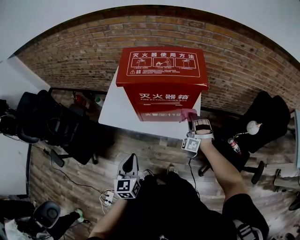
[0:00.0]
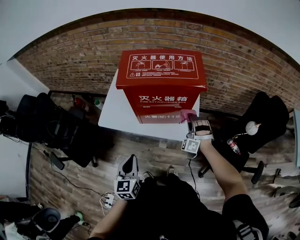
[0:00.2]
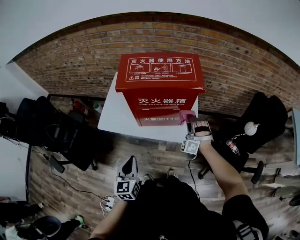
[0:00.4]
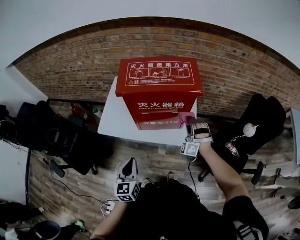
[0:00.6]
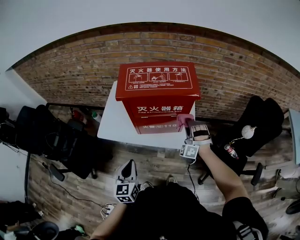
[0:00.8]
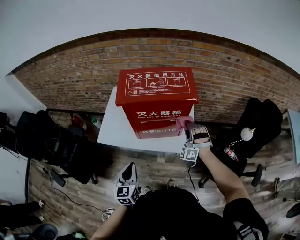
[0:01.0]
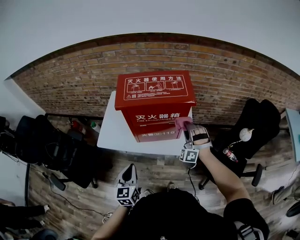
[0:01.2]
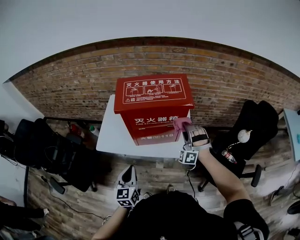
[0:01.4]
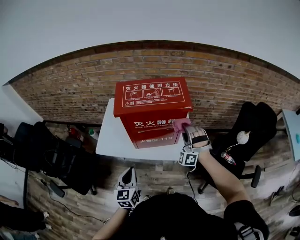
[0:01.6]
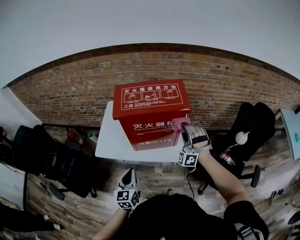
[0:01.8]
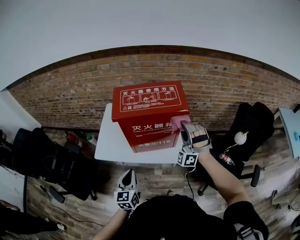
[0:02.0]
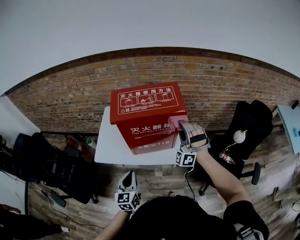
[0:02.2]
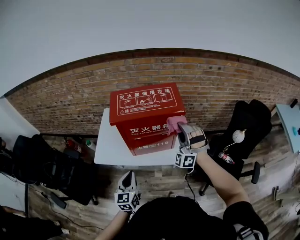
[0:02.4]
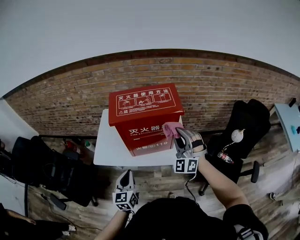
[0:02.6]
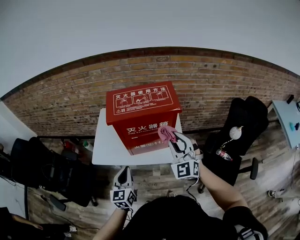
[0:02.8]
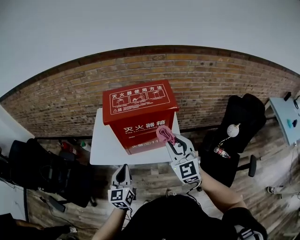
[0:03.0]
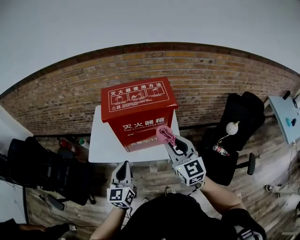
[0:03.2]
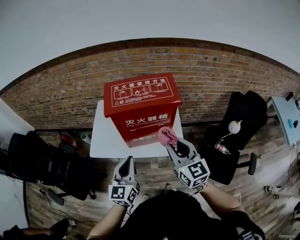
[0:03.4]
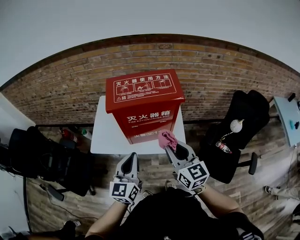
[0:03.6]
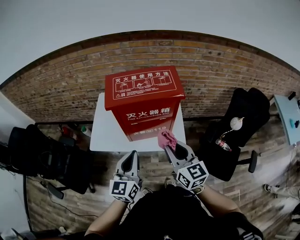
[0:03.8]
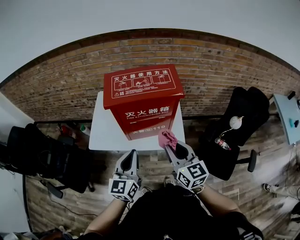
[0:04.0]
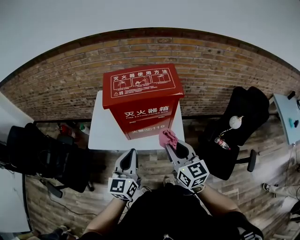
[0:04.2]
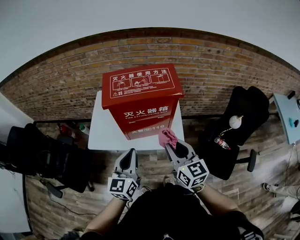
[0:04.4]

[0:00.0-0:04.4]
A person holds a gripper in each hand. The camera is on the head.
0:01.4 to 0:03.0: The left gripper travels upward by approximately 5 cm.
0:03.0 to 0:04.4: The left gripper ends up some 5 cm from where it was.

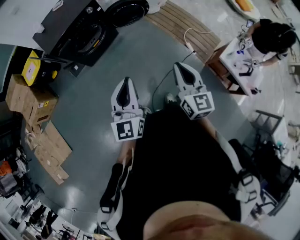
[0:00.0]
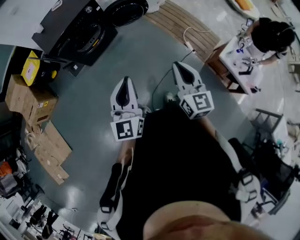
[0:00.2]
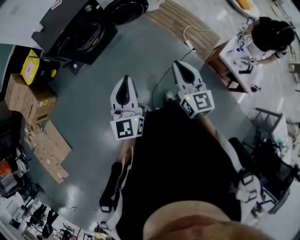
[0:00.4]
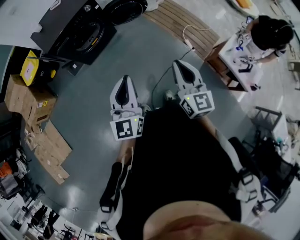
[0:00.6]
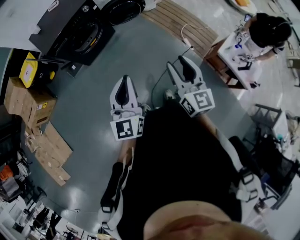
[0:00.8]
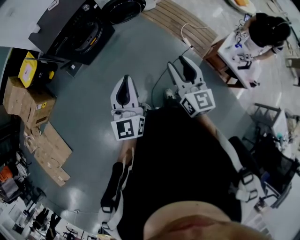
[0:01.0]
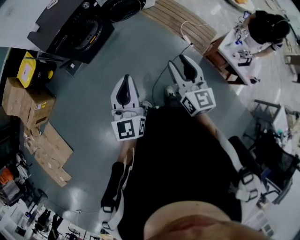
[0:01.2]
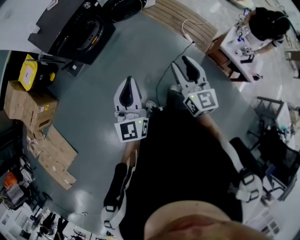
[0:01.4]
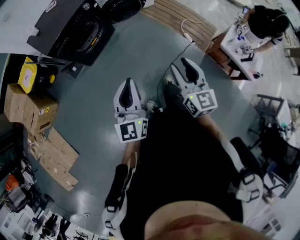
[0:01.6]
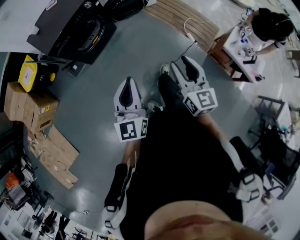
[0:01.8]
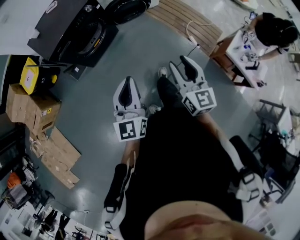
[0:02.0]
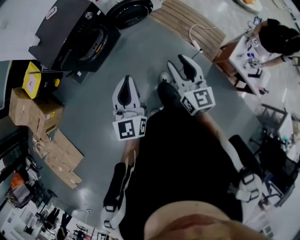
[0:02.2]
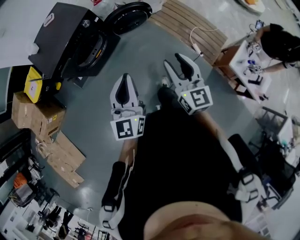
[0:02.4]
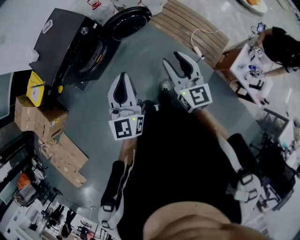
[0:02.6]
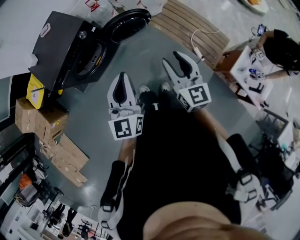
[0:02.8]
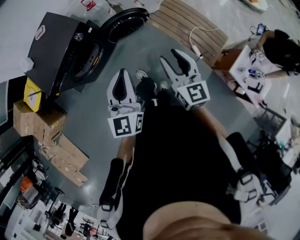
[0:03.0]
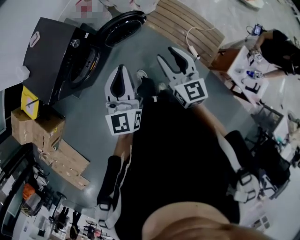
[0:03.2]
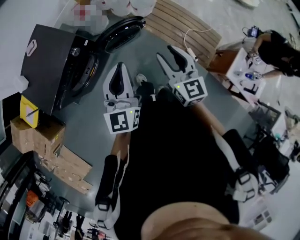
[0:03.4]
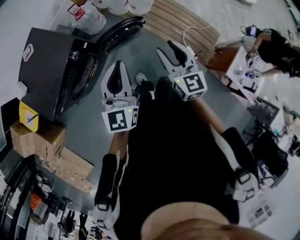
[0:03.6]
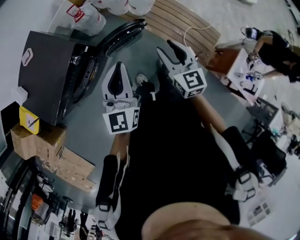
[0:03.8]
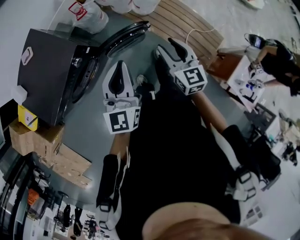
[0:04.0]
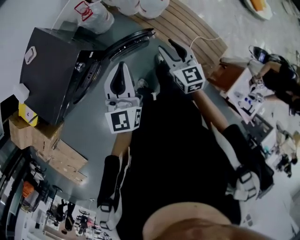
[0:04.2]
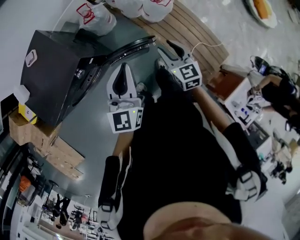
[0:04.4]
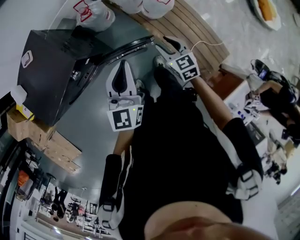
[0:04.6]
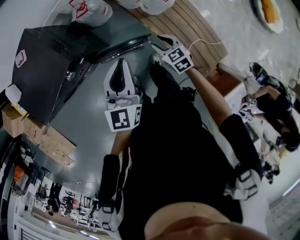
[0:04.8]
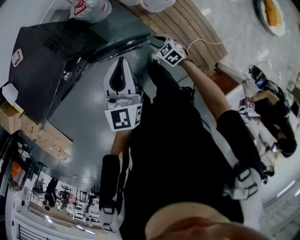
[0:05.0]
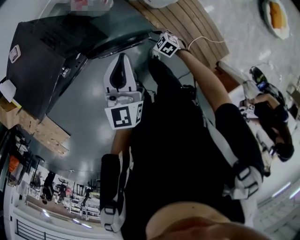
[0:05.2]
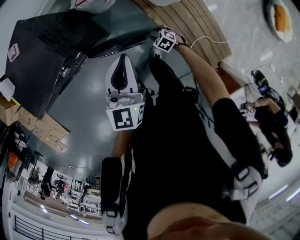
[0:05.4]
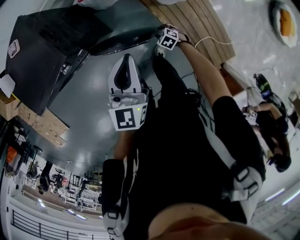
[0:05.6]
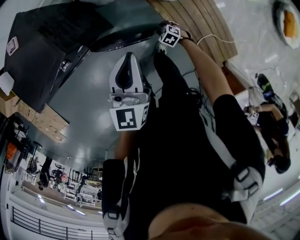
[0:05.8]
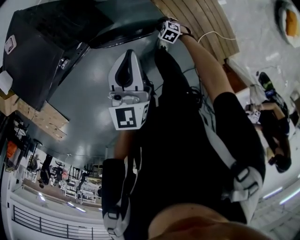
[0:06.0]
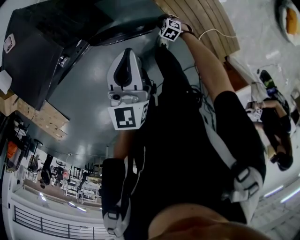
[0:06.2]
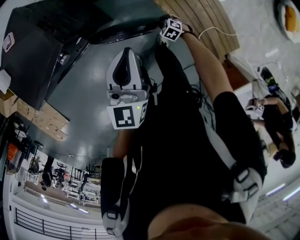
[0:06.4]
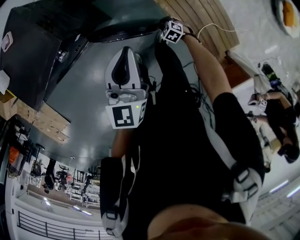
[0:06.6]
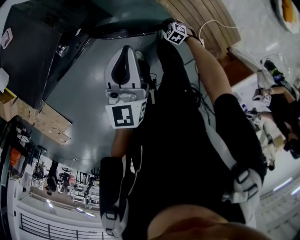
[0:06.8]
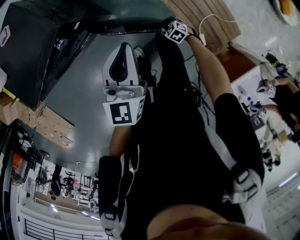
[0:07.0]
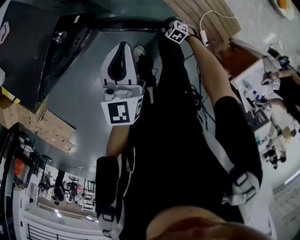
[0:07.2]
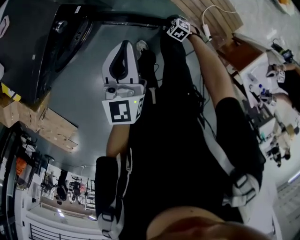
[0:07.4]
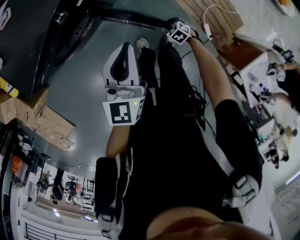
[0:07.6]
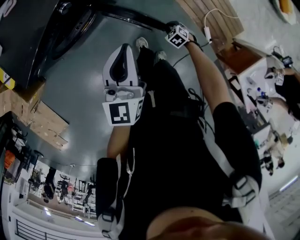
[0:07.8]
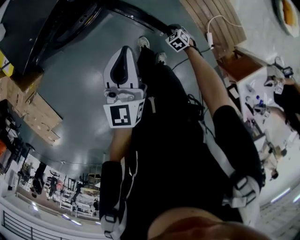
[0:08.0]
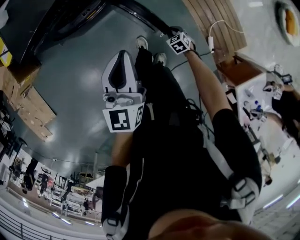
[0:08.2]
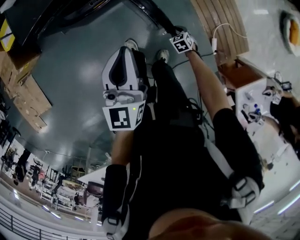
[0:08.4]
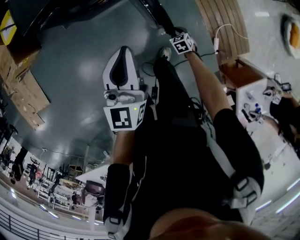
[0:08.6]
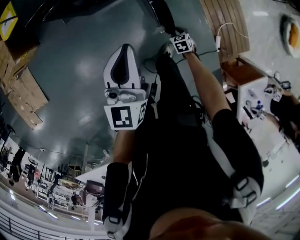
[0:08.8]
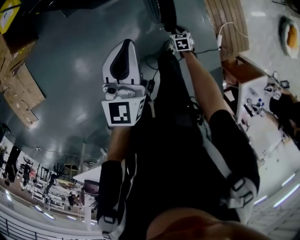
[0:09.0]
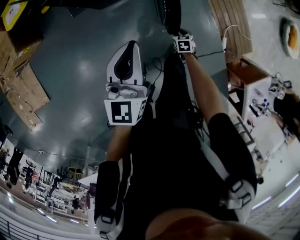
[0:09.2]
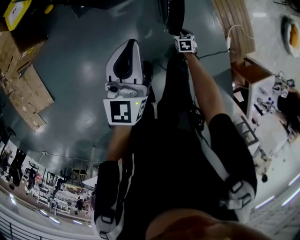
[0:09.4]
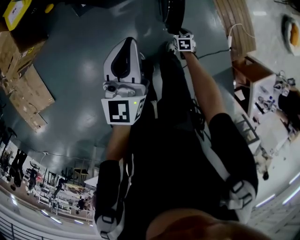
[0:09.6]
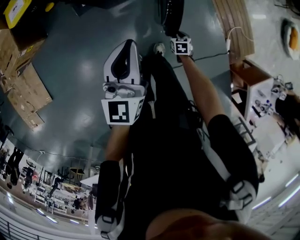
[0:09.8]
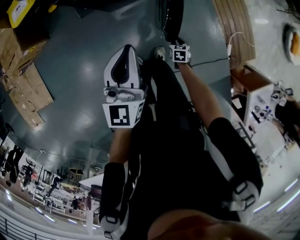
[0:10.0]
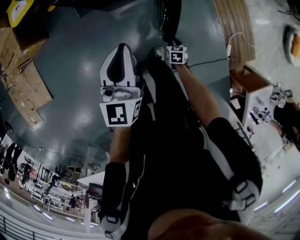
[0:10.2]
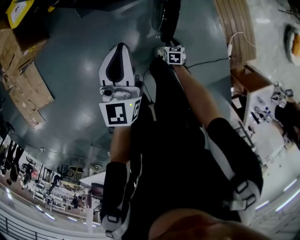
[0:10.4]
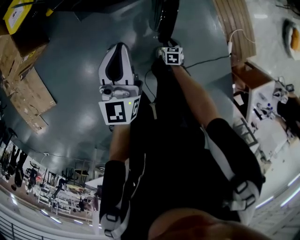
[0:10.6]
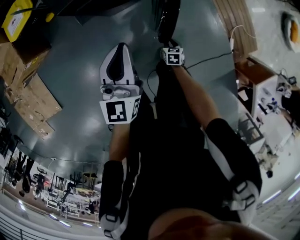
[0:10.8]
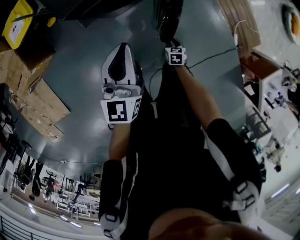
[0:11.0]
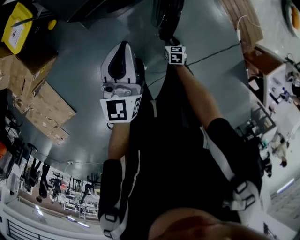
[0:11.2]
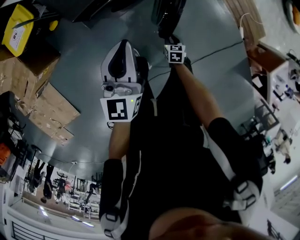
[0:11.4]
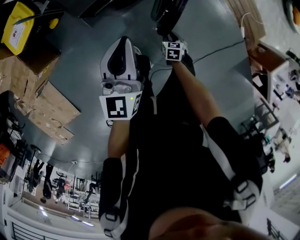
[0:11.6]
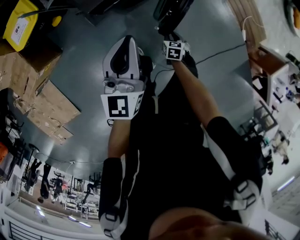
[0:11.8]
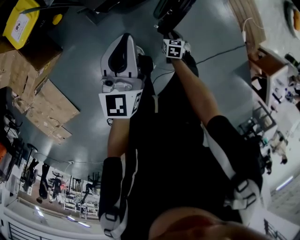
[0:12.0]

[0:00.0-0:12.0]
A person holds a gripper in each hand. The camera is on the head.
0:00.0 to 0:01.6: The two grippers go roughly 10 cm to the left. The right gripper opens its fingers.
0:01.6 to 0:03.0: The two grippers go about 35 cm forward.
0:03.0 to 0:04.4: The grippers both shift forward by about 35 cm. The right gripper turns by some 20 degrees.
0:04.4 to 0:06.0: The right gripper shifts about 40 cm downward, and tips its fingers downward by roughly 40 degrees, while the left gripper shifts by some 15 cm.
0:06.0 to 0:07.6: The right gripper goes roughly 25 cm backward and to the left. Meanwhile the left gripper shifts approximately 25 cm to the left and backward.
0:07.6 to 0:09.0: The grippers both shift to the left and backward by roughly 25 cm. The left gripper rotates approximately 20 degrees. Meanwhile the right gripper turns by about 20 degrees.
0:09.0 to 0:10.4: The two grippers go about 15 cm to the left.
0:10.4 to 0:12.0: Both grippers travel together to the left, about 20 cm.

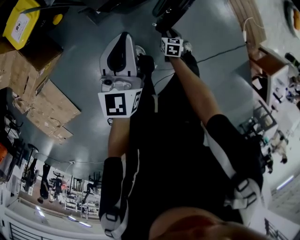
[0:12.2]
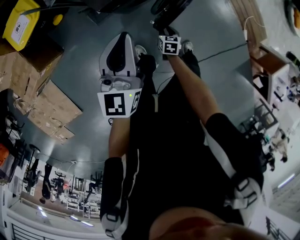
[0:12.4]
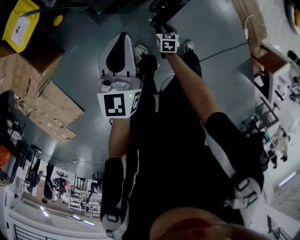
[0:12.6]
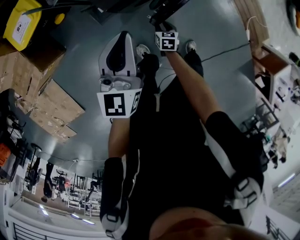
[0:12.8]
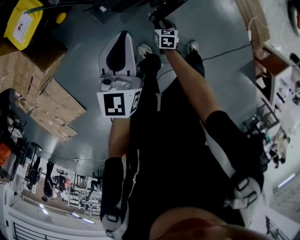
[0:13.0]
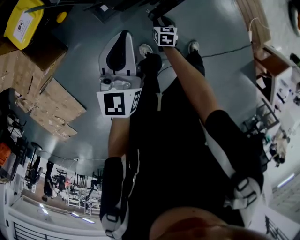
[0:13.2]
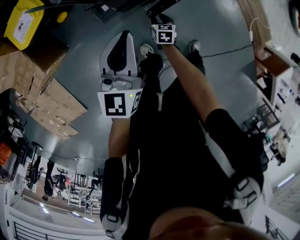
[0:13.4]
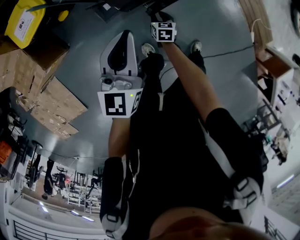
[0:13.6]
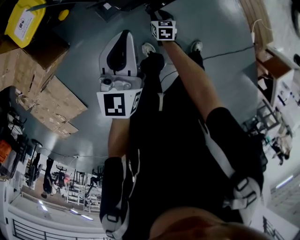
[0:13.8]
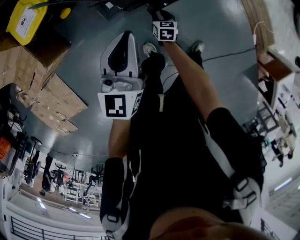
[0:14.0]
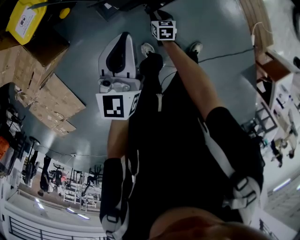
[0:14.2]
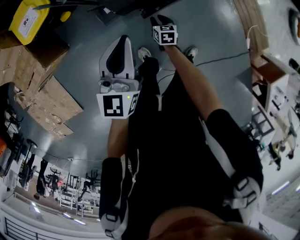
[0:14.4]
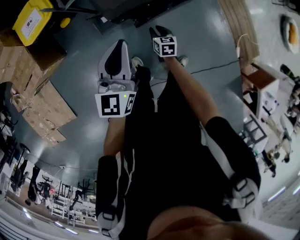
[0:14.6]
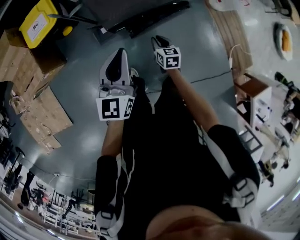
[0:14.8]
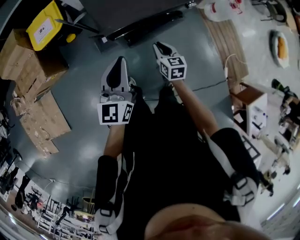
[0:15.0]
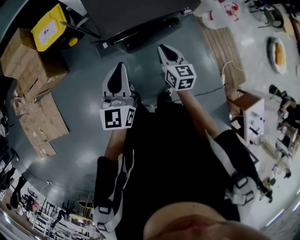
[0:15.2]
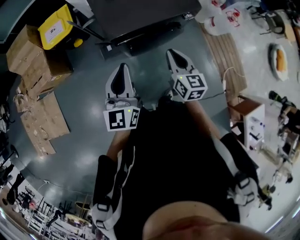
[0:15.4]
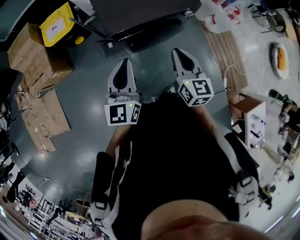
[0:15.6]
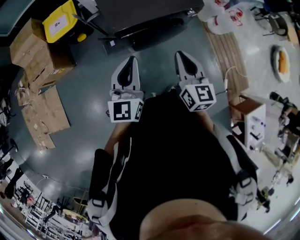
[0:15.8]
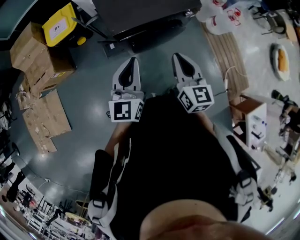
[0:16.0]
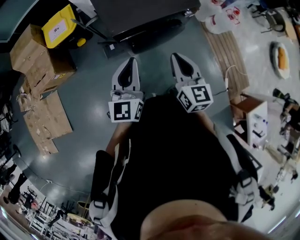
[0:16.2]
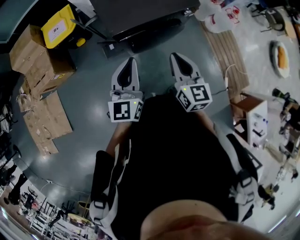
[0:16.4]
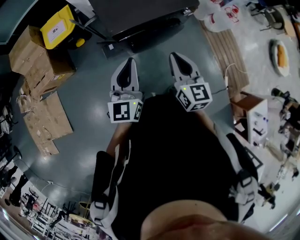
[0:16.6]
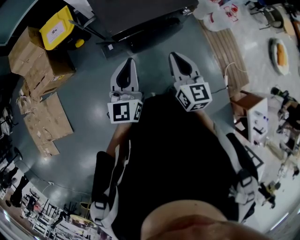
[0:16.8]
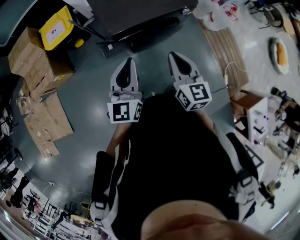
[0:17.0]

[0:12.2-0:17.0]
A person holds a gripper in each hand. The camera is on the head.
0:12.2 to 0:13.8: The left gripper is displaced to the left by some 5 cm. The right gripper travels to the left and forward by some 20 cm.
0:13.8 to 0:15.4: The left gripper travels upward, backward and to the right by about 20 cm, and changes its angle by roughly 20 degrees; the right gripper heads upward, covering approximately 50 cm, tilts its fingers about 30 degrees upward, and closes up.
0:15.4 to 0:17.0: The right gripper heads upward and backward, covering about 10 cm.

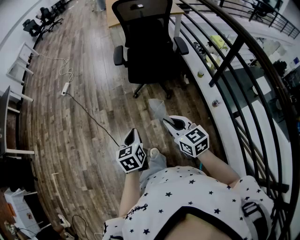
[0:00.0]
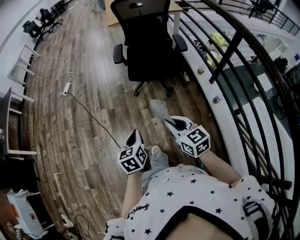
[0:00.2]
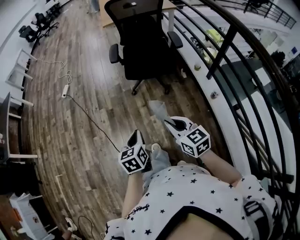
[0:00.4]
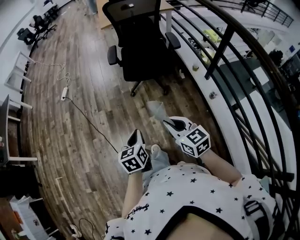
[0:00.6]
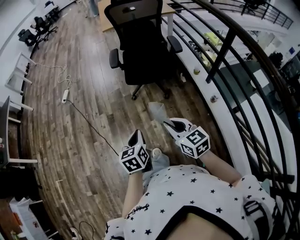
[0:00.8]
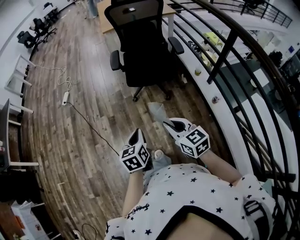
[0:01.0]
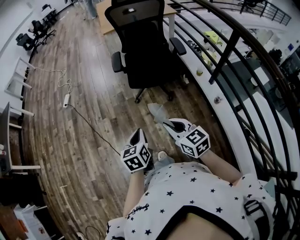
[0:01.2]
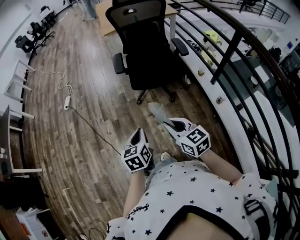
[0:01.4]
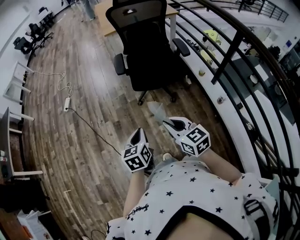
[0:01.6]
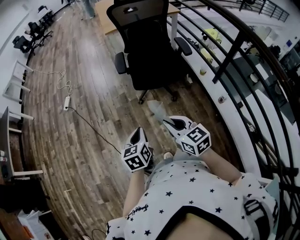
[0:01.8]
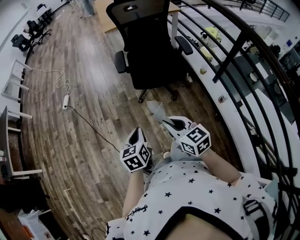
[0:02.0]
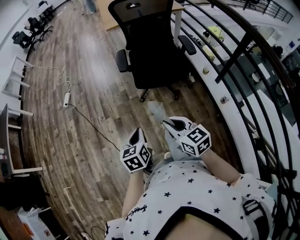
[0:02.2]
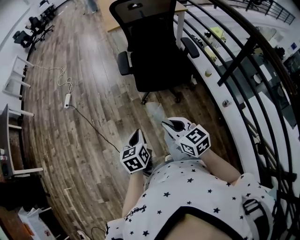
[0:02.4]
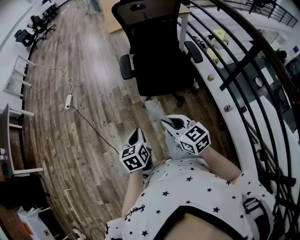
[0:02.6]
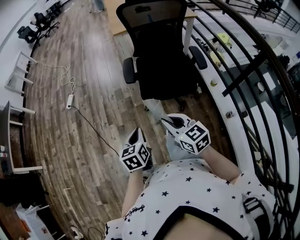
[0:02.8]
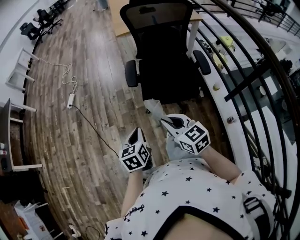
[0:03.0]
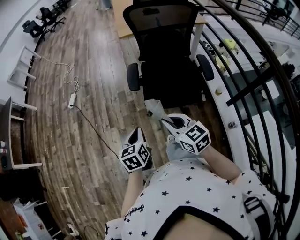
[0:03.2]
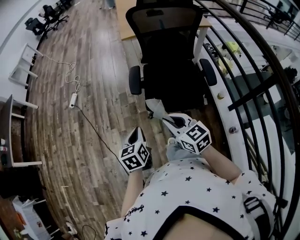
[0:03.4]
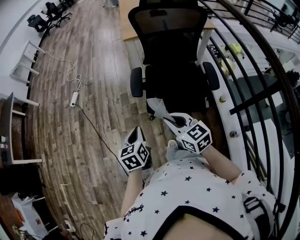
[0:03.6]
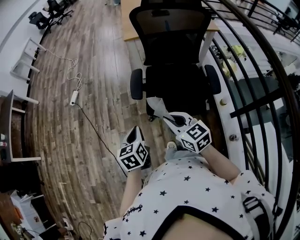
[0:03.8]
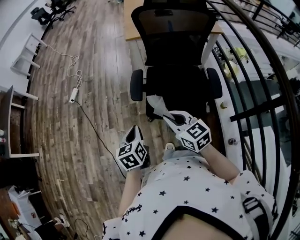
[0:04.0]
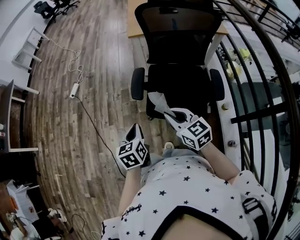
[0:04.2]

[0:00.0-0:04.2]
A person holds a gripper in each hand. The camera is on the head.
0:00.0 to 0:01.4: The left gripper moves forward, some 5 cm. Meanwhile the right gripper shifts by about 5 cm.
0:01.4 to 0:02.8: Both grippers travel together forward, approximately 20 cm.
0:02.8 to 0:04.2: Both grippers move forward and to the right, some 20 cm.
